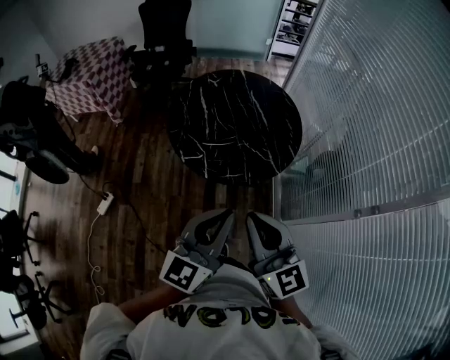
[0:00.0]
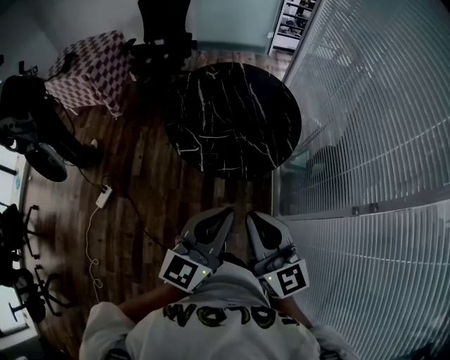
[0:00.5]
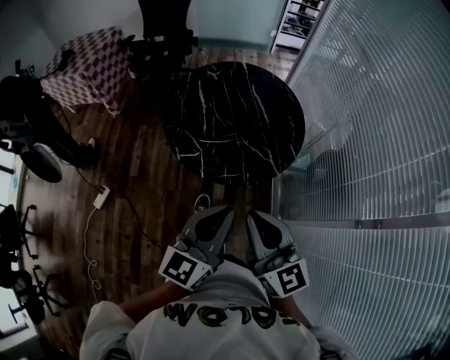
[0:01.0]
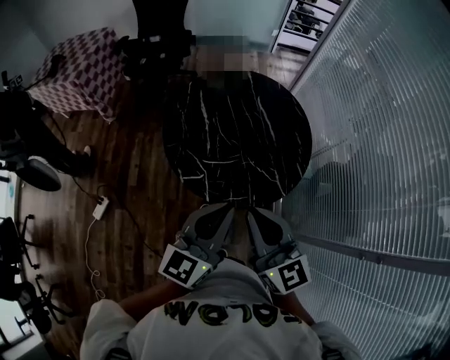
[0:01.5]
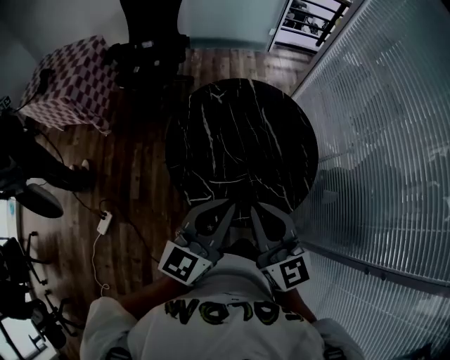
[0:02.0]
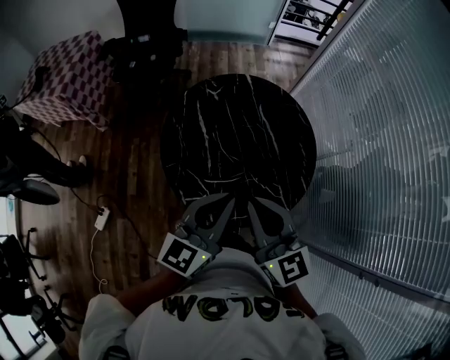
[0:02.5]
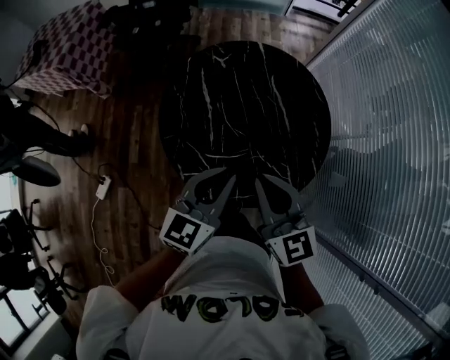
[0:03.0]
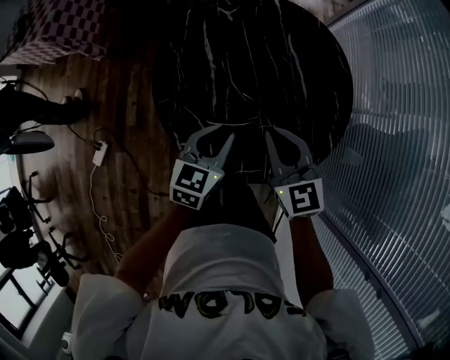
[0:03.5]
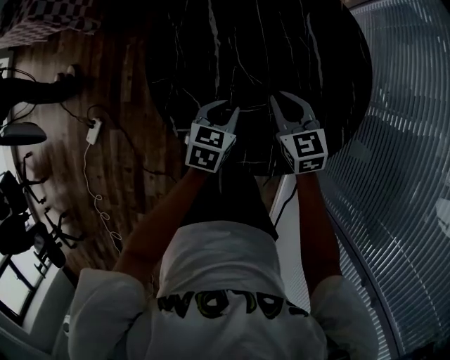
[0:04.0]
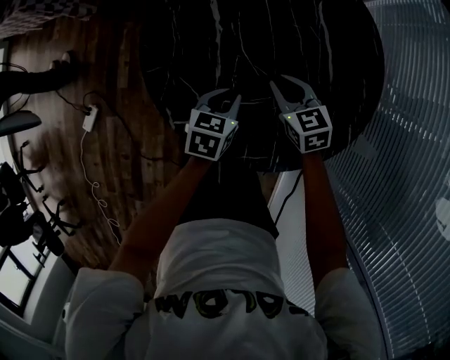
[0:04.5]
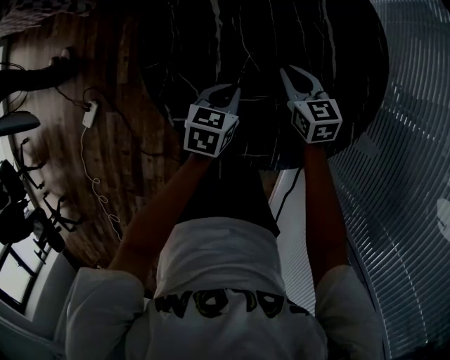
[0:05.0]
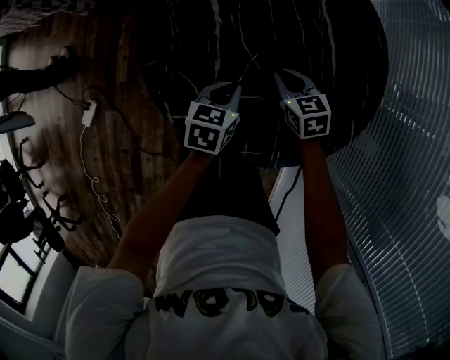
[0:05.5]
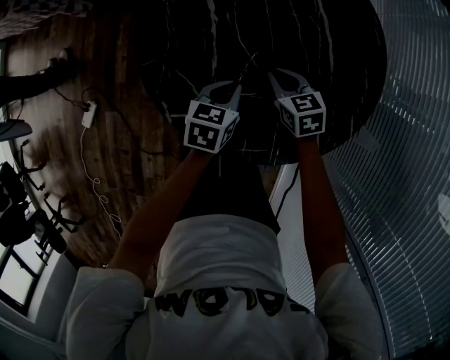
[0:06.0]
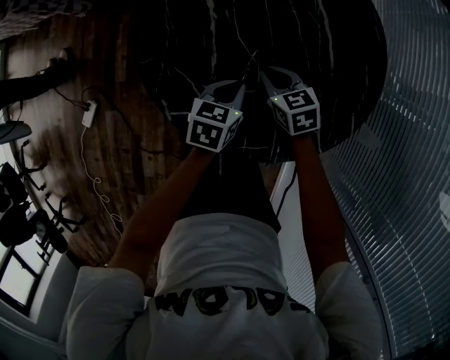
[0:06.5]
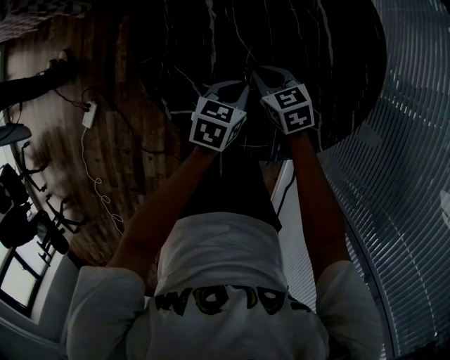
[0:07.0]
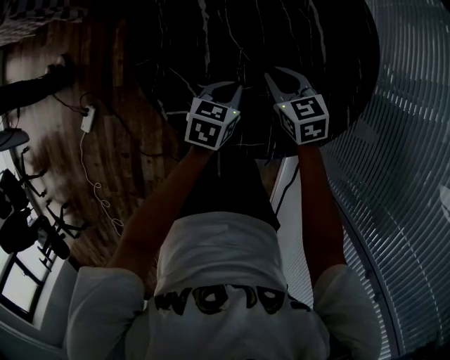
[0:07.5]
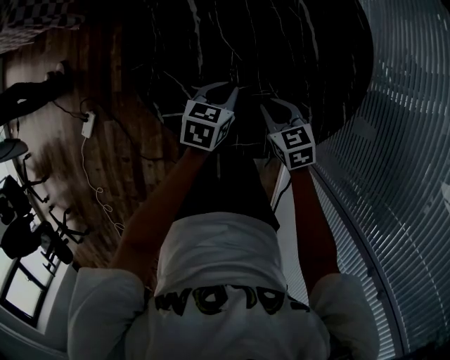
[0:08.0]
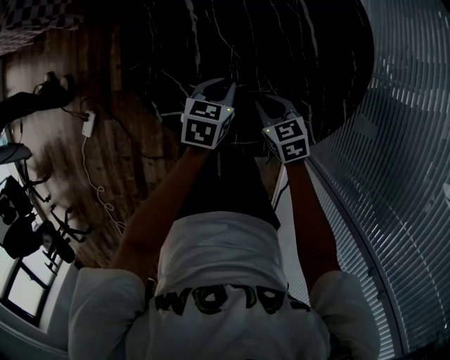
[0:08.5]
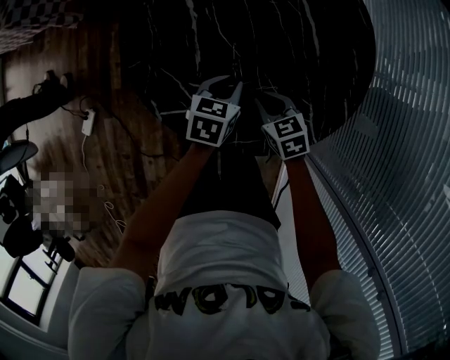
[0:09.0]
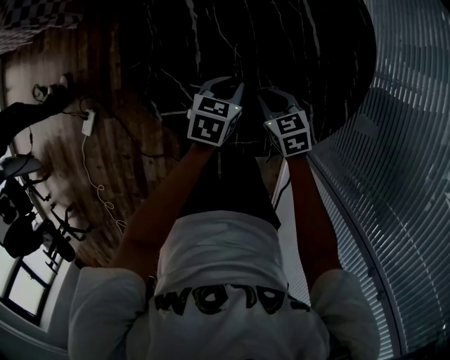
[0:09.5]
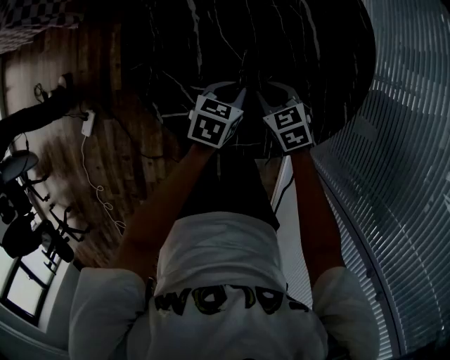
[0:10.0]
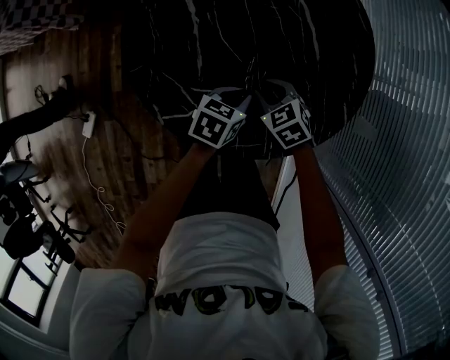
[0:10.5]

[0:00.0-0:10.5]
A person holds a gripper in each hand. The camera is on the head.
0:00.0 to 0:02.0: The two grippers go approximately 30 cm forward.
0:02.0 to 0:04.0: The left gripper heads downward, covering about 40 cm, and points its fingers approximately 50 degrees further downward. Meanwhile the right gripper is displaced downward and forward by roughly 40 cm, and tilts its fingers approximately 30 degrees downward.
0:04.0 to 0:06.5: The right gripper moves downward, roughly 10 cm.
0:06.5 to 0:08.5: The right gripper shifts approximately 10 cm backward.
0:08.5 to 0:10.5: The grippers move only a little.

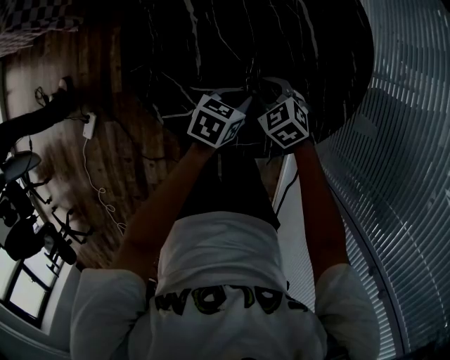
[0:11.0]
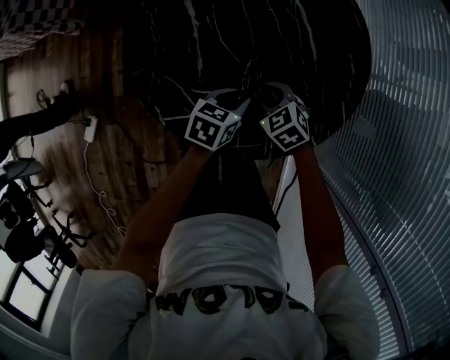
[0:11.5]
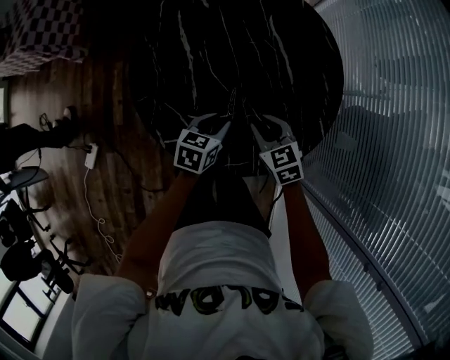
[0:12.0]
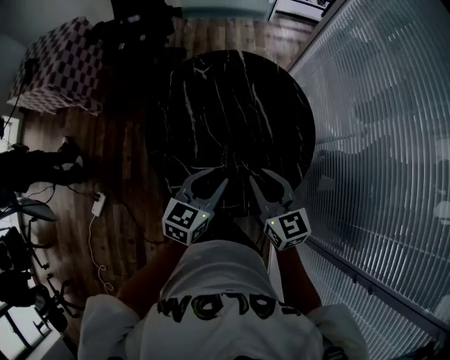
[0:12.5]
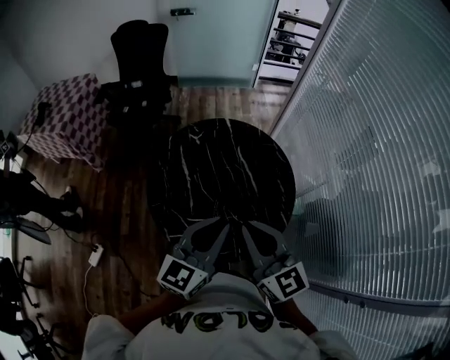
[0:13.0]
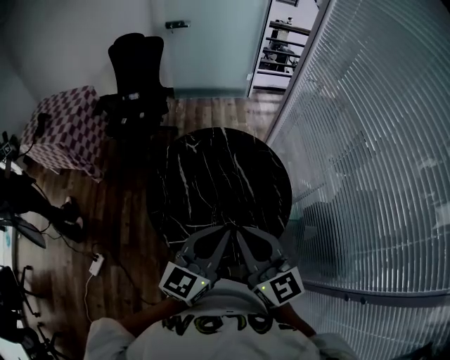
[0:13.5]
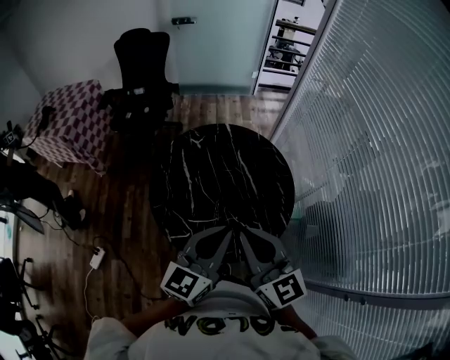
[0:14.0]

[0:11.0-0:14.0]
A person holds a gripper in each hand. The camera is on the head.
0:11.0 to 0:12.5: Both grippers move upward, some 30 cm. The left gripper swivels approximately 30 degrees. Meanwhile the right gripper points its fingers some 40 degrees further upward.
0:12.5 to 0:14.0: The right gripper shifts approximately 20 cm upward and backward; the left gripper moves upward, about 20 cm, swivels approximately 20 degrees, and closes up.

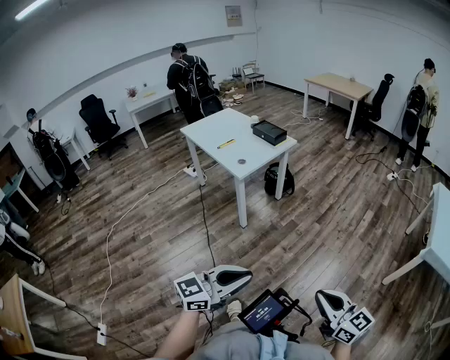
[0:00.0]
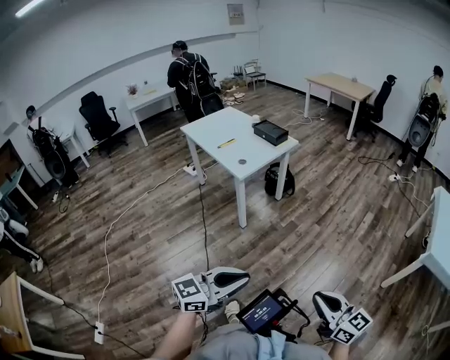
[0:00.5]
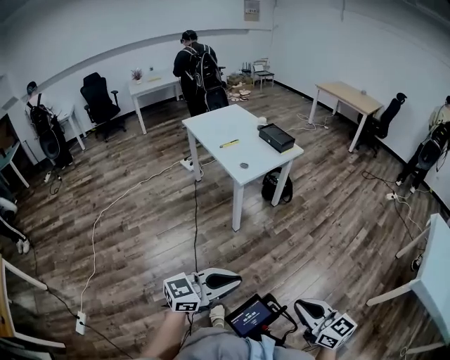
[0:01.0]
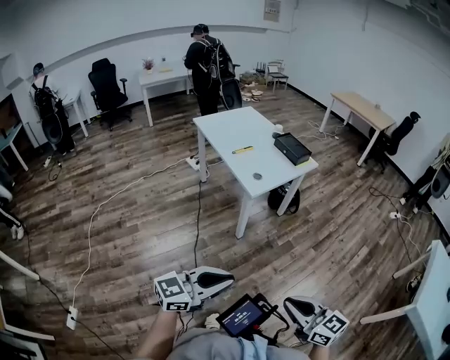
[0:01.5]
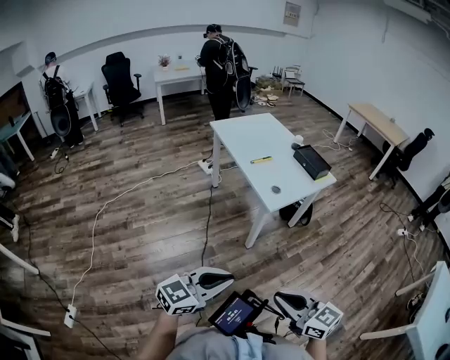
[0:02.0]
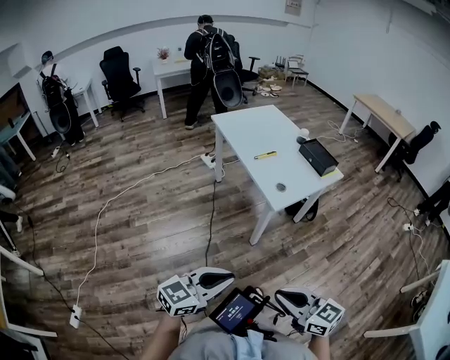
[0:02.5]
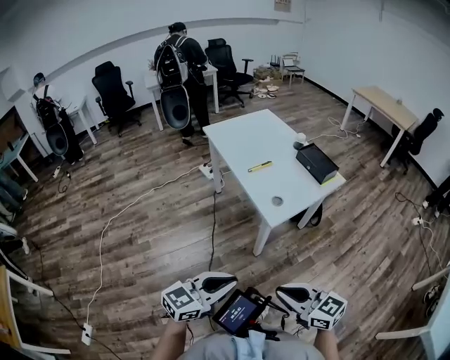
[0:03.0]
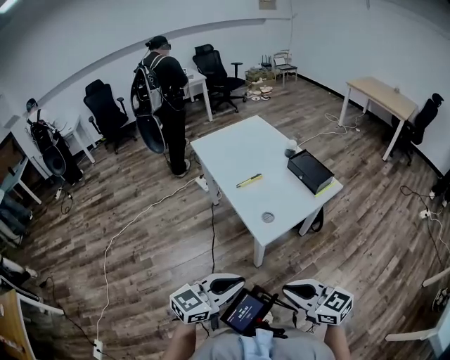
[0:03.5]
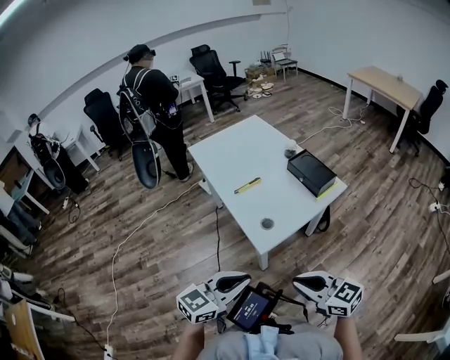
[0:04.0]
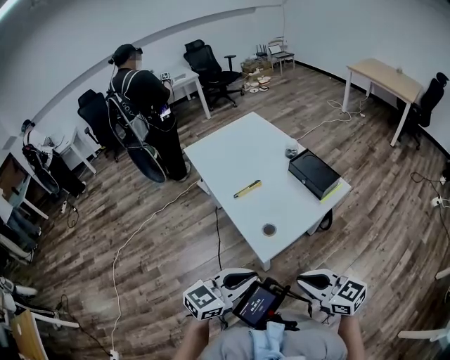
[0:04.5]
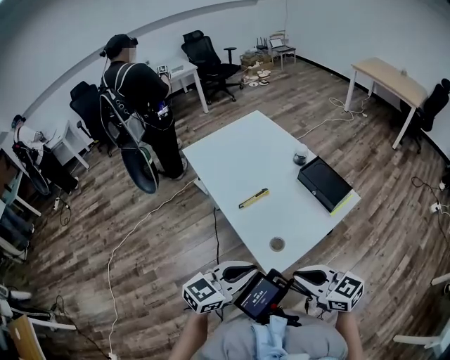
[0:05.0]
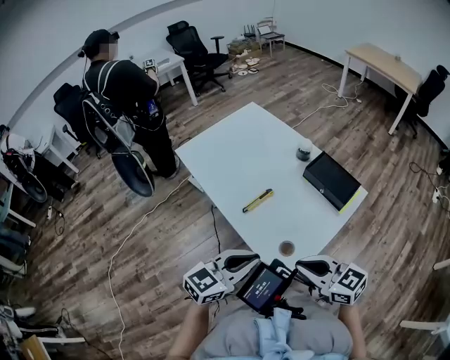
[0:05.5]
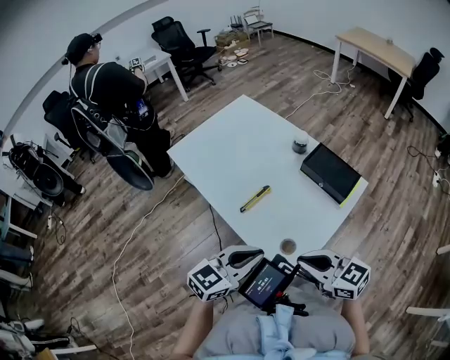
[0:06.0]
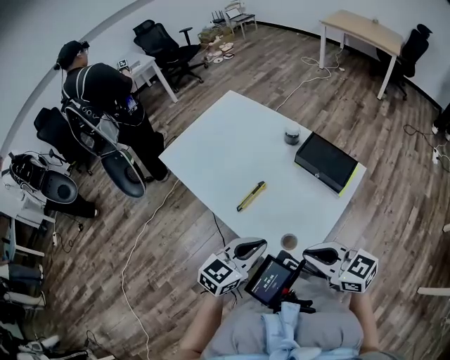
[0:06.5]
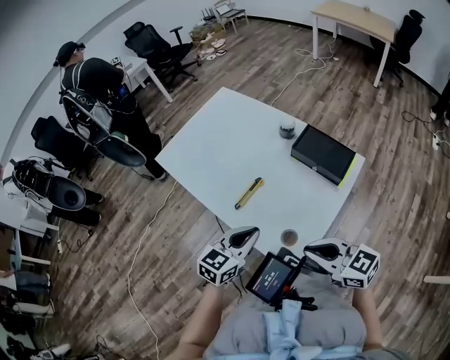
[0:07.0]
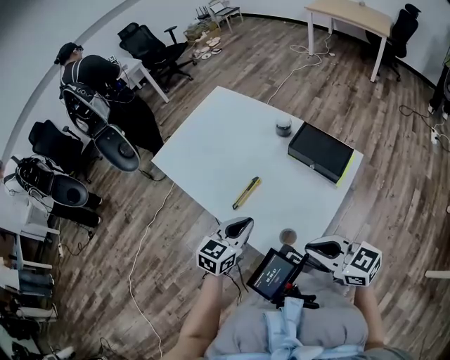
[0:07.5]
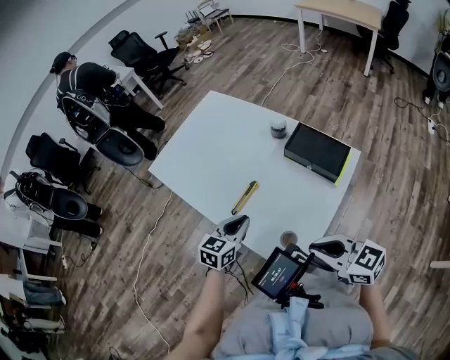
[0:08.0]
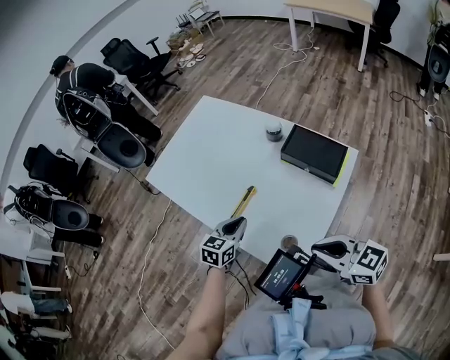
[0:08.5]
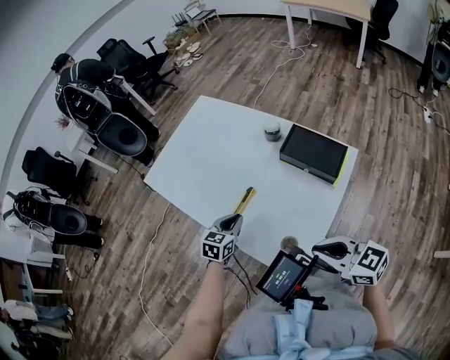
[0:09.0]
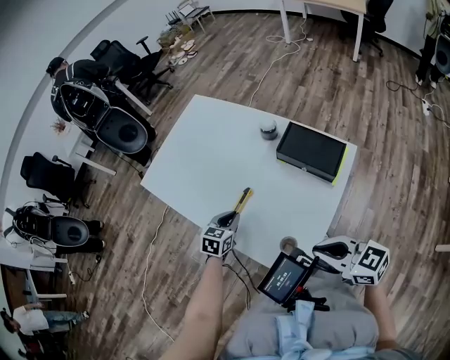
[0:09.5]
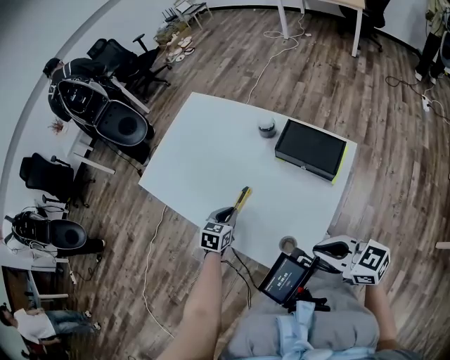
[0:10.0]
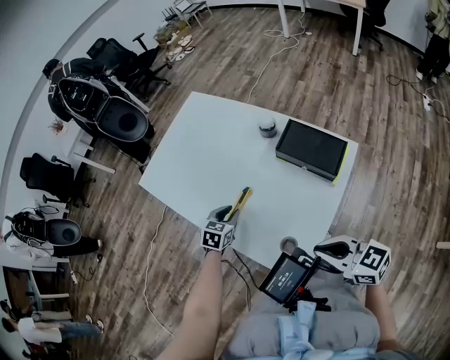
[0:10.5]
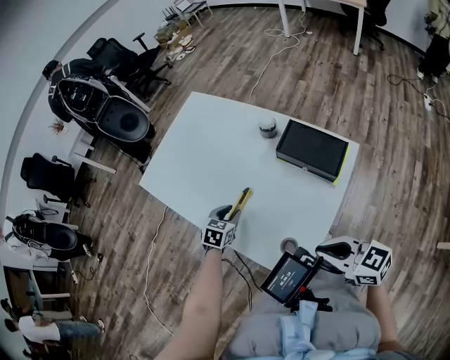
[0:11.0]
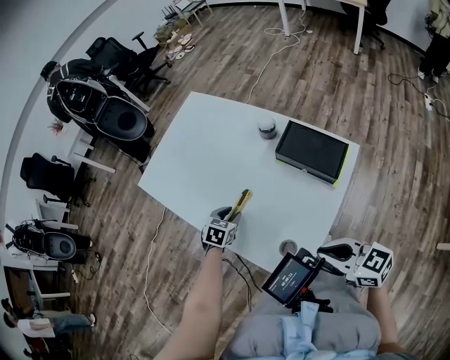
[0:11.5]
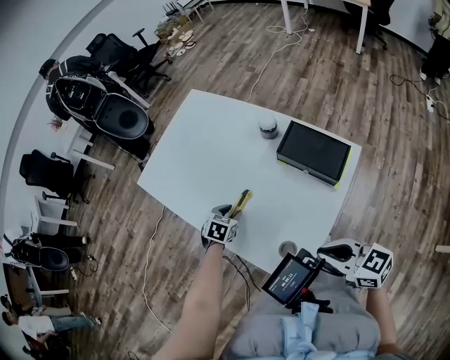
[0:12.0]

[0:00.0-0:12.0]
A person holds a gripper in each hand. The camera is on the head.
0:00.0 to 0:02.0: Both grippers travel together to the left and forward, some 30 cm. The right gripper turns by about 30 degrees.
0:02.0 to 0:04.0: The two grippers go some 30 cm forward and to the right.
0:04.0 to 0:06.0: Both grippers travel together forward, approximately 25 cm.
0:06.0 to 0:08.0: The left gripper is displaced forward and downward by about 20 cm.
0:08.0 to 0:10.0: The left gripper heads forward and downward, covering about 10 cm.
0:10.0 to 0:12.0: The left gripper moves approximately 5 cm, and opens.

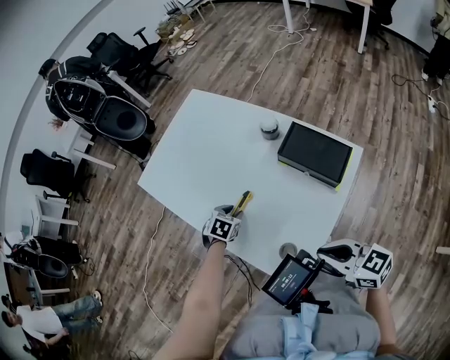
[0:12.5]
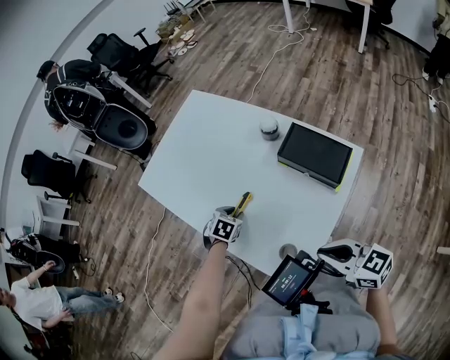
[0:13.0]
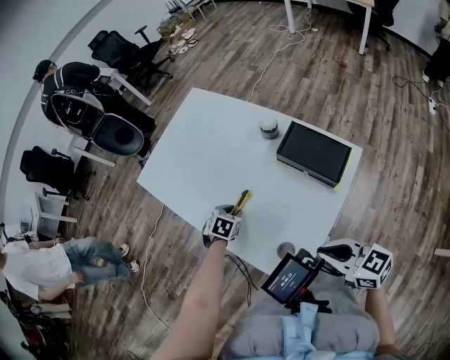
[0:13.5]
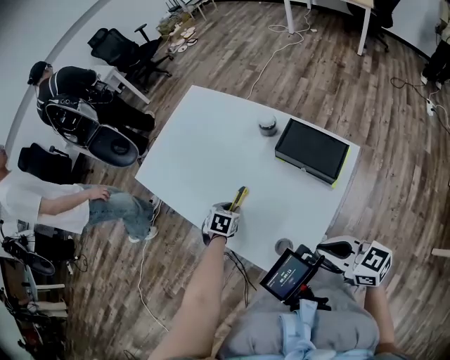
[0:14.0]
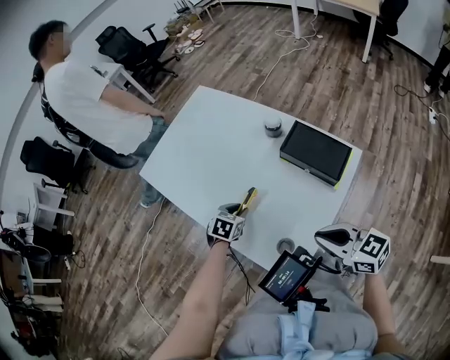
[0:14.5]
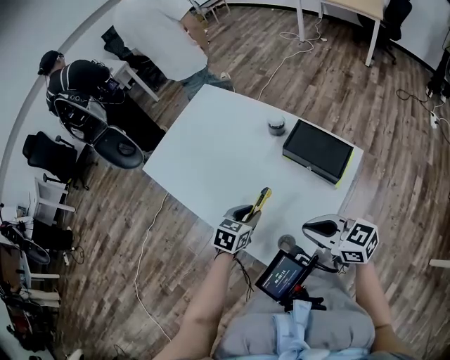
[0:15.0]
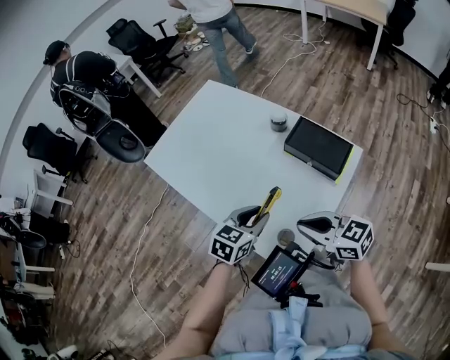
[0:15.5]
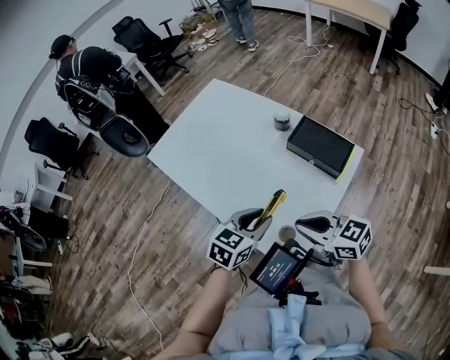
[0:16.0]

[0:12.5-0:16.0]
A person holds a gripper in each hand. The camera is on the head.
0:12.5 to 0:14.5: There are only small adjustments of the grippers.
0:14.5 to 0:16.0: The left gripper heads upward and backward, covering some 20 cm, and turns by some 20 degrees. The right gripper goes some 5 cm to the left.
